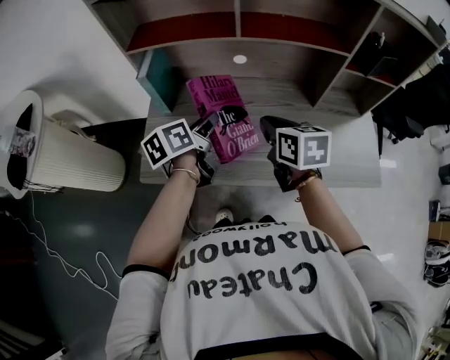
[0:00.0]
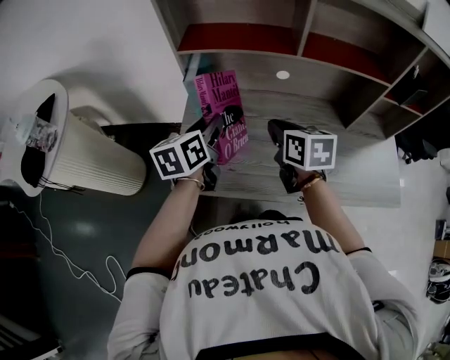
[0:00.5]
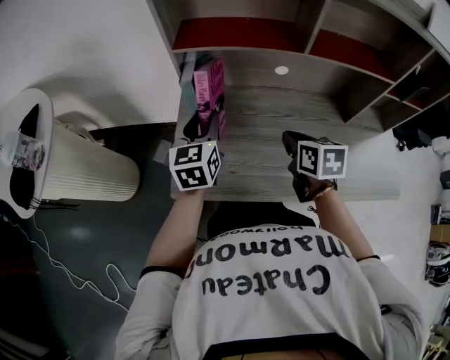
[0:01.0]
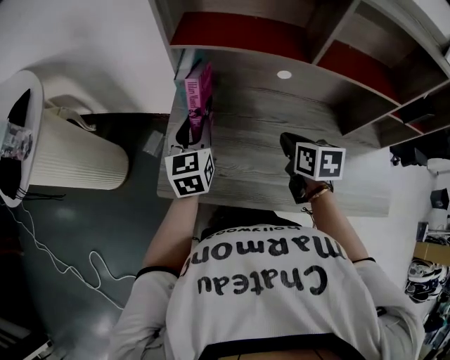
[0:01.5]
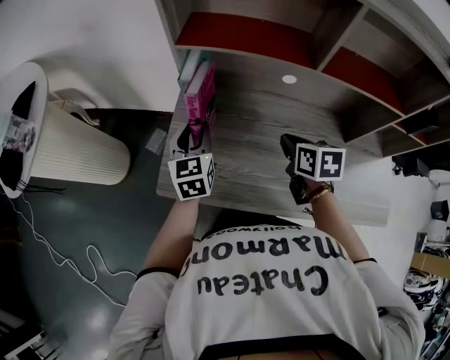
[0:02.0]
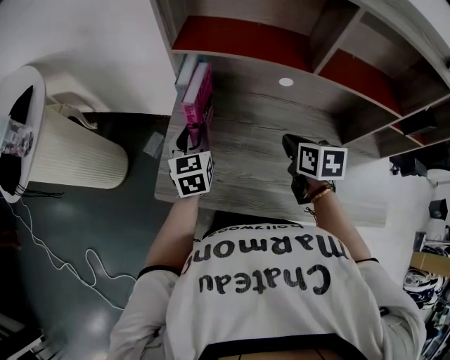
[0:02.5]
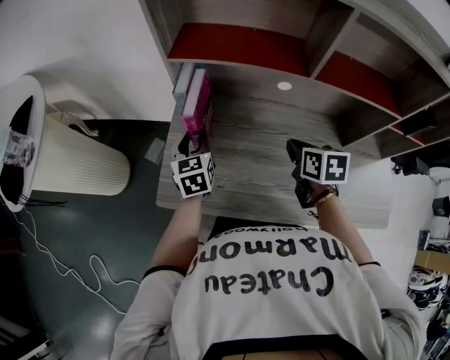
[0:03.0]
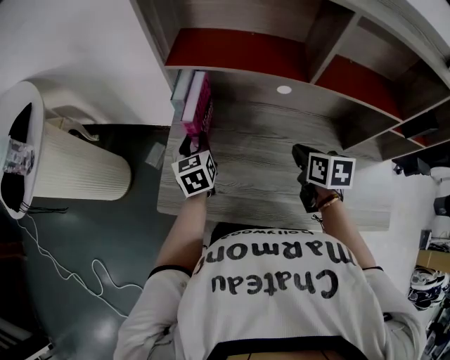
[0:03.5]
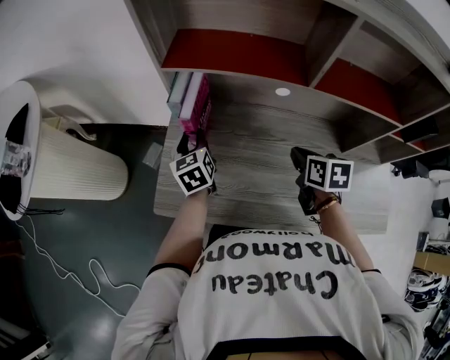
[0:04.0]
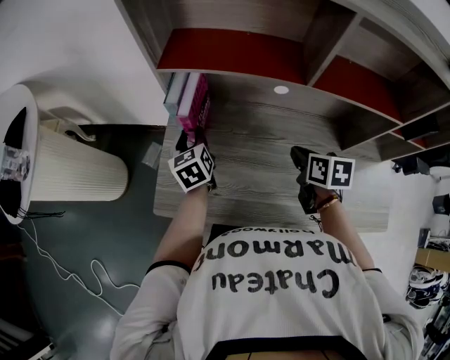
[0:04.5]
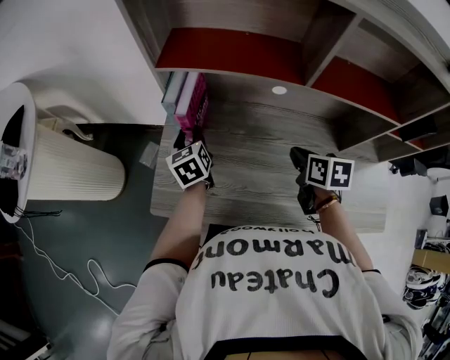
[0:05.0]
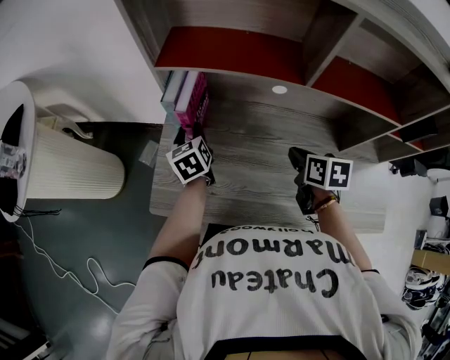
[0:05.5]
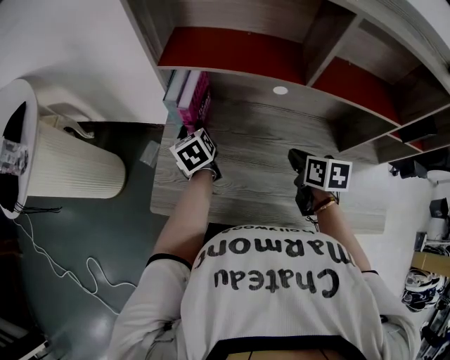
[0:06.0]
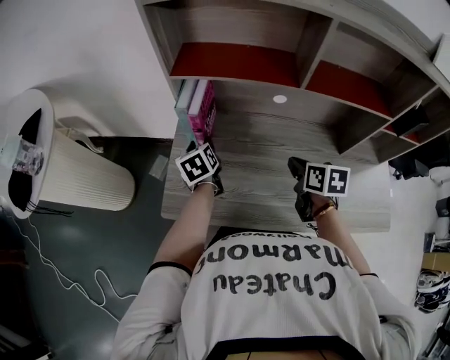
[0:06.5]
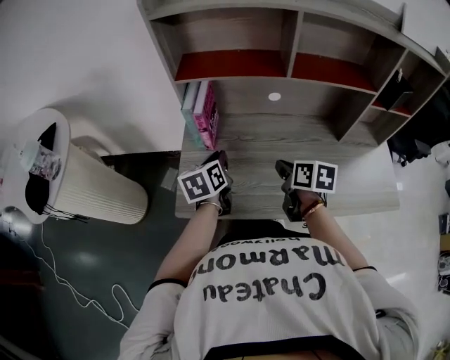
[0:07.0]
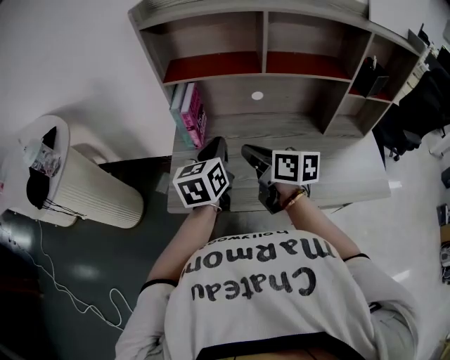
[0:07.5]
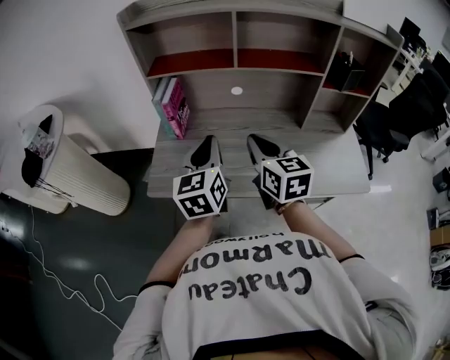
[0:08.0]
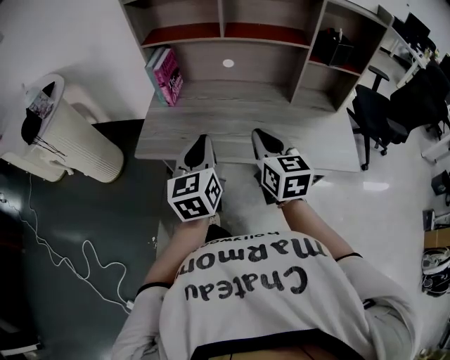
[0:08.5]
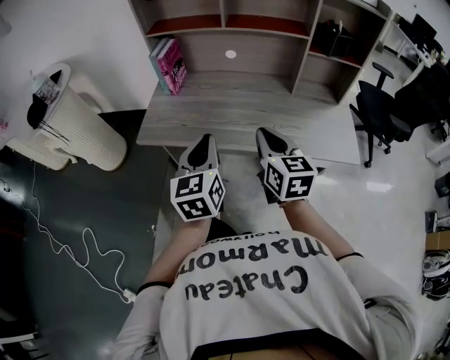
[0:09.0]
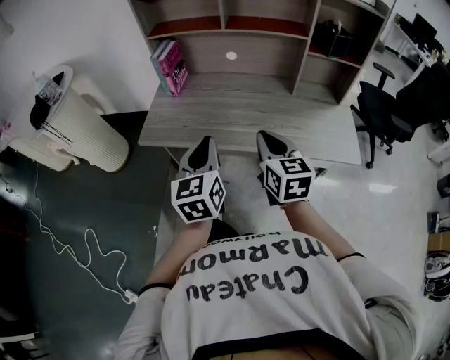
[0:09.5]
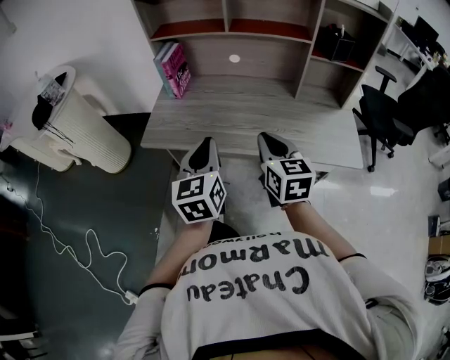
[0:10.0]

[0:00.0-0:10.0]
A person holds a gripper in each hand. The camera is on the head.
0:00.0 to 0:02.0: The left gripper goes approximately 15 cm to the left and forward, and rotates some 50 degrees, while the right gripper heads forward, downward and to the left, covering approximately 10 cm.
0:02.0 to 0:04.0: The right gripper is displaced to the right by roughly 5 cm. Meanwhile the left gripper heads forward and downward, covering some 10 cm.
0:04.0 to 0:06.0: There are only small adjustments of the grippers.
0:06.0 to 0:08.0: The left gripper is displaced backward, upward and to the right by approximately 35 cm, changes its angle by approximately 40 degrees, and closes its fingers. Meanwhile the right gripper is displaced upward and backward by roughly 25 cm, and tips its fingers upward by some 30 degrees.
0:08.0 to 0:10.0: The left gripper heads backward, covering roughly 15 cm, while the right gripper travels backward and to the right by roughly 15 cm.

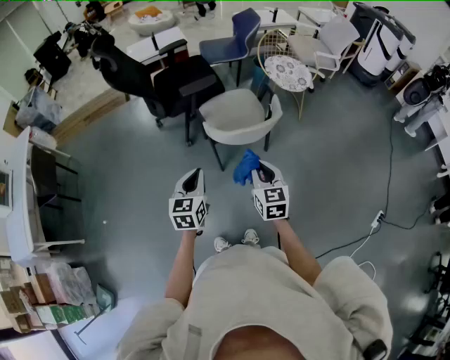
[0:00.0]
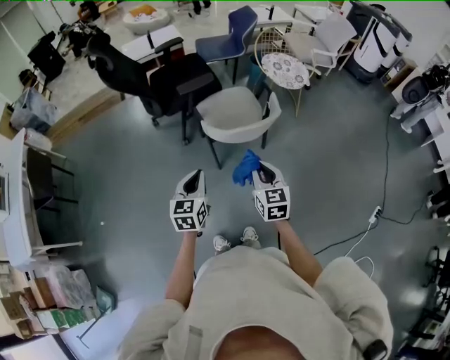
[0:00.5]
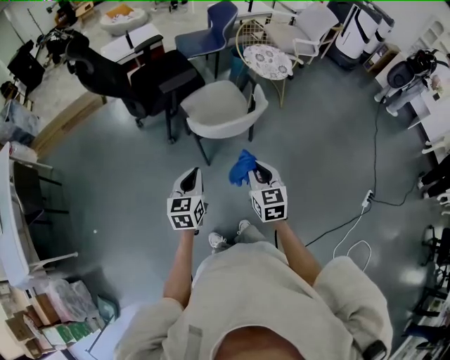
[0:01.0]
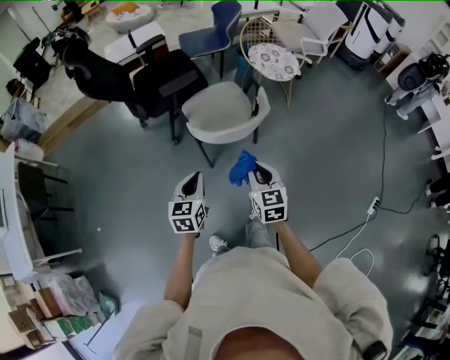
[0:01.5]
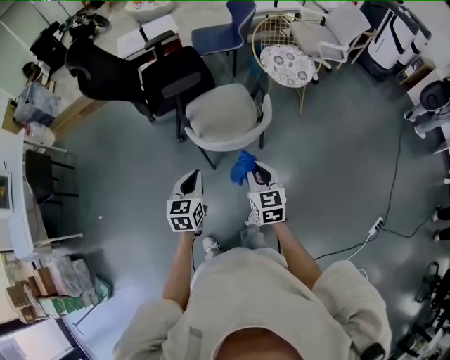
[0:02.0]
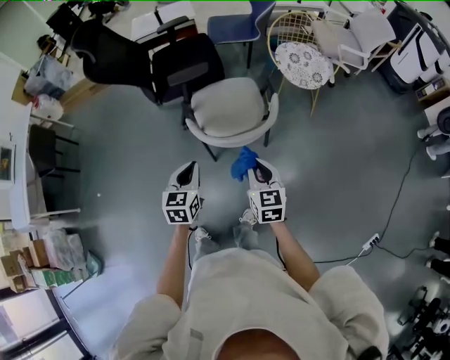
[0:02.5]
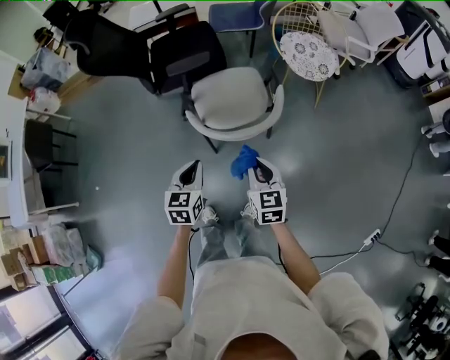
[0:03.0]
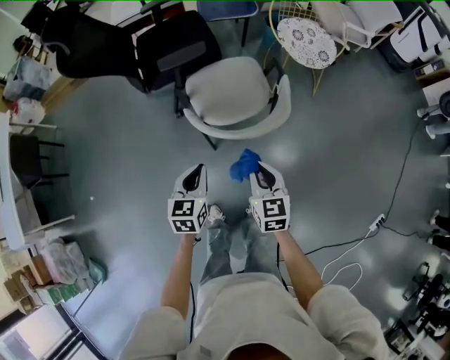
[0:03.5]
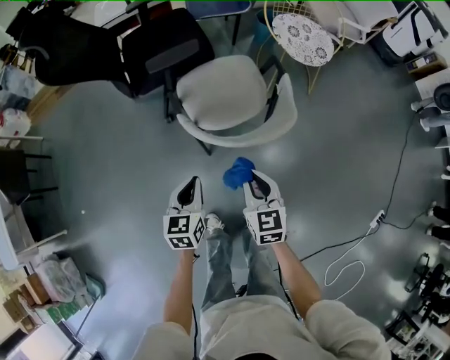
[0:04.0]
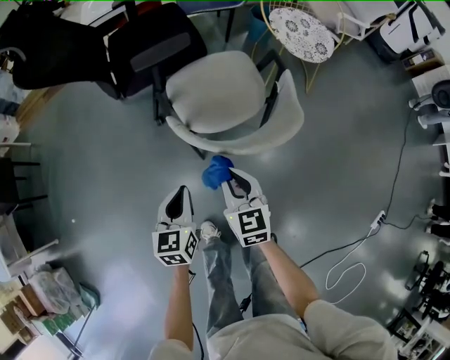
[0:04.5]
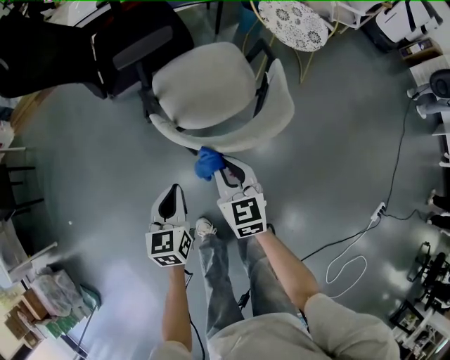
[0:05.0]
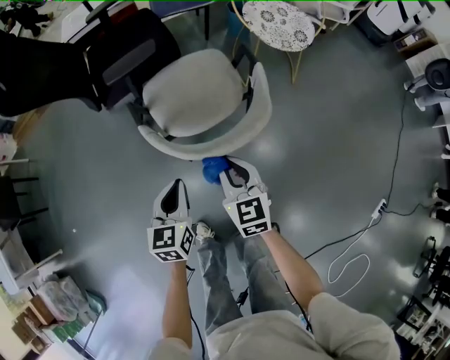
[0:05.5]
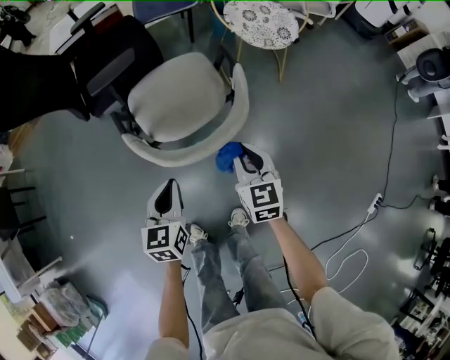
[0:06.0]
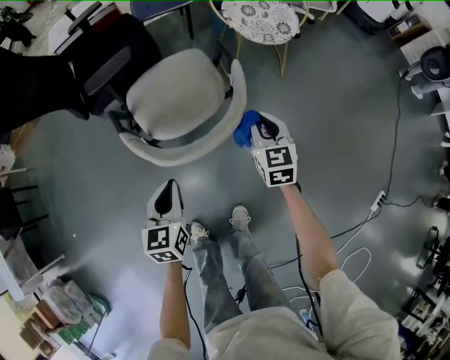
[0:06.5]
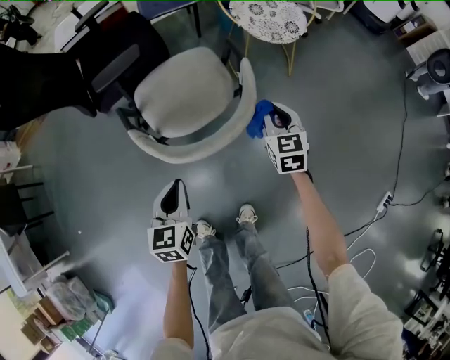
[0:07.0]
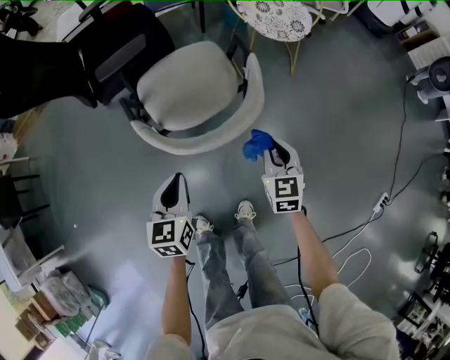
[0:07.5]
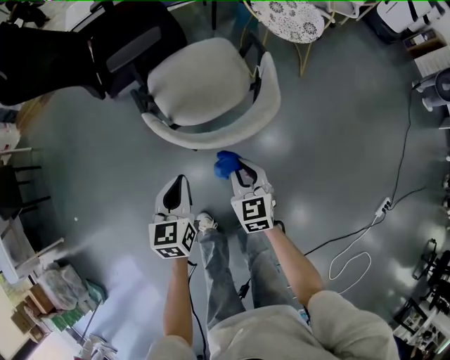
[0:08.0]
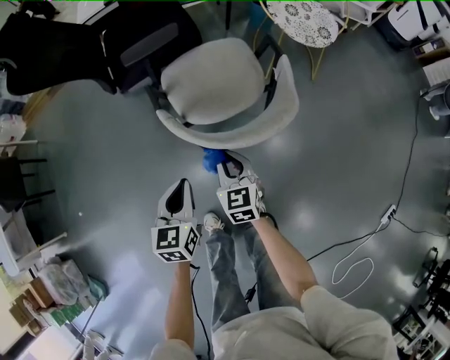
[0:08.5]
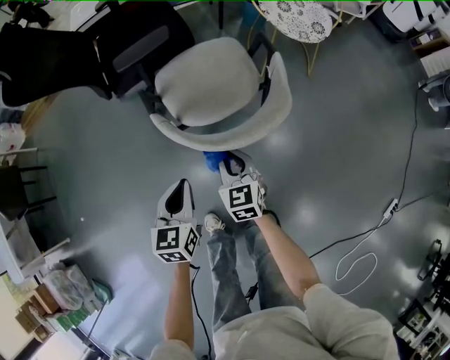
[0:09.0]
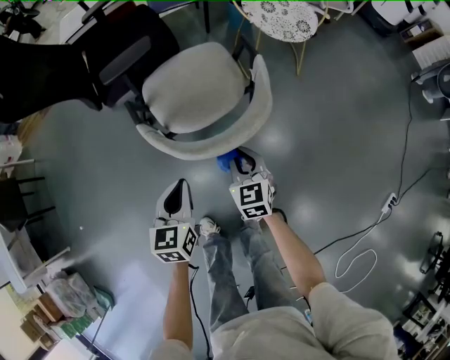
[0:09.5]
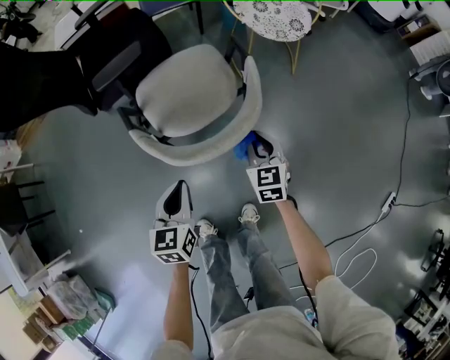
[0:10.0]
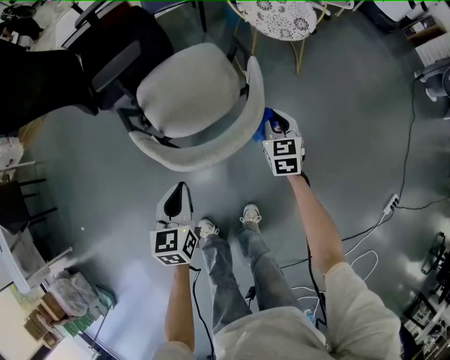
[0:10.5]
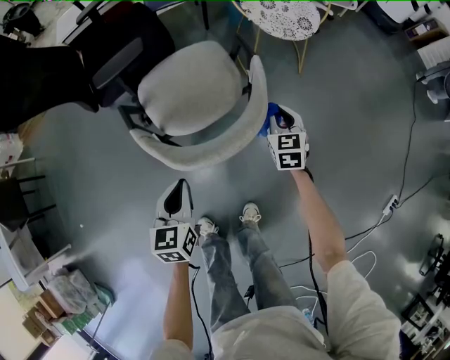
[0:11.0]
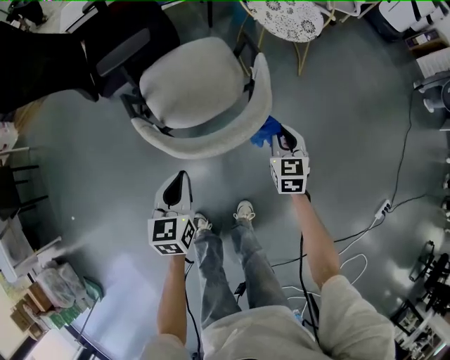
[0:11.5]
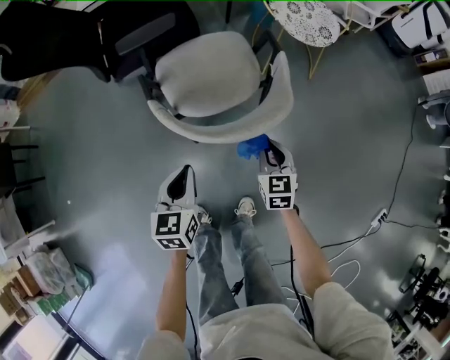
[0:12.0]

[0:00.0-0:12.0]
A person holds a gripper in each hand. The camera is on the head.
0:00.0 to 0:02.0: The right gripper moves forward and to the right, about 15 cm. The left gripper shifts roughly 15 cm to the right and forward.
0:02.0 to 0:04.0: The left gripper moves downward, about 15 cm. The right gripper is displaced downward and to the left by approximately 15 cm.
0:04.0 to 0:06.0: The left gripper heads to the right, covering approximately 10 cm. The right gripper is displaced to the right and forward by approximately 15 cm.
0:06.0 to 0:08.0: The right gripper travels to the left, backward and downward by some 15 cm, while the left gripper ends up some 5 cm from where it was.
0:08.0 to 0:10.0: The right gripper shifts approximately 15 cm to the right and forward; the left gripper moves about 5 cm.
0:10.0 to 0:12.0: The right gripper shifts roughly 5 cm backward.

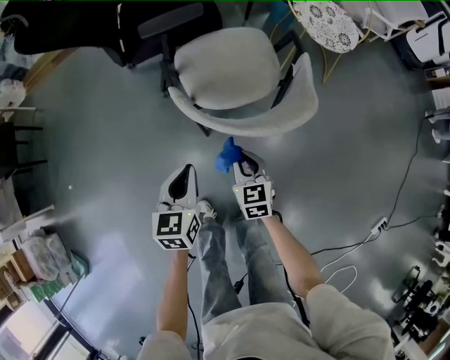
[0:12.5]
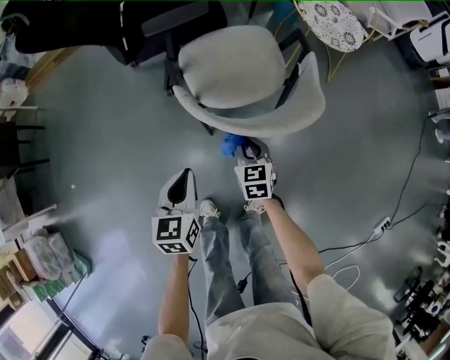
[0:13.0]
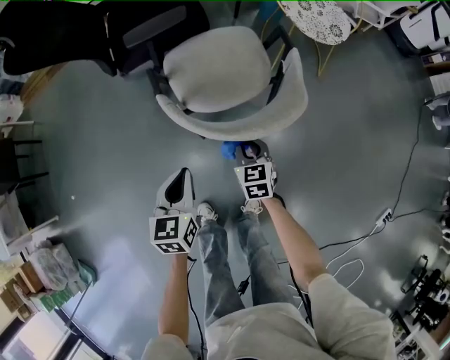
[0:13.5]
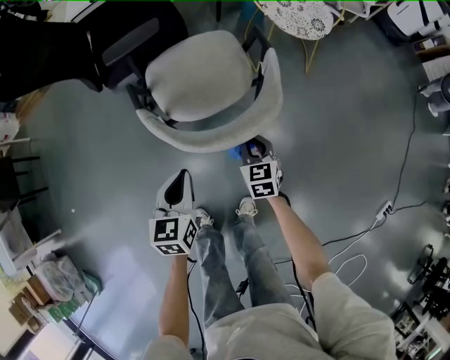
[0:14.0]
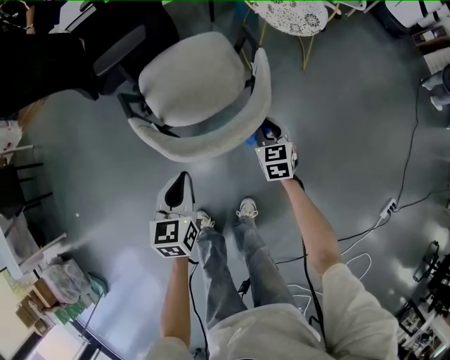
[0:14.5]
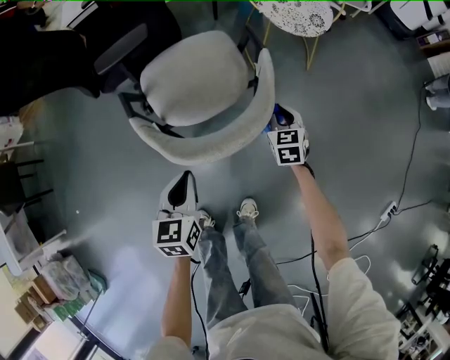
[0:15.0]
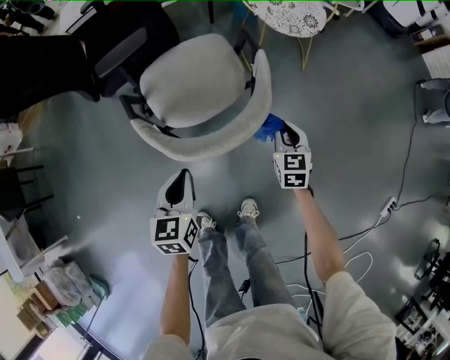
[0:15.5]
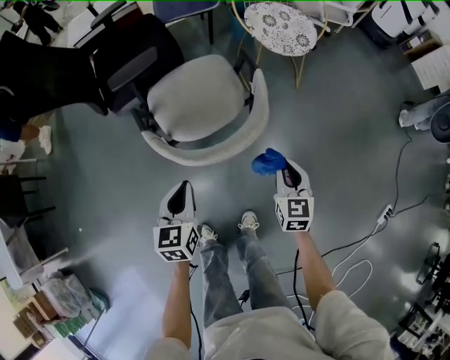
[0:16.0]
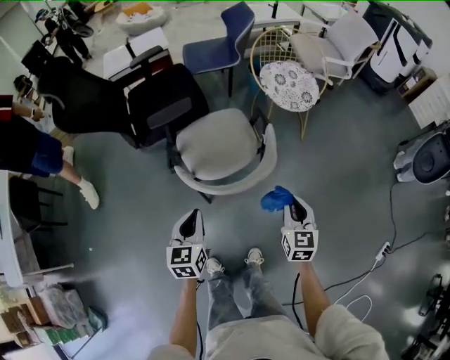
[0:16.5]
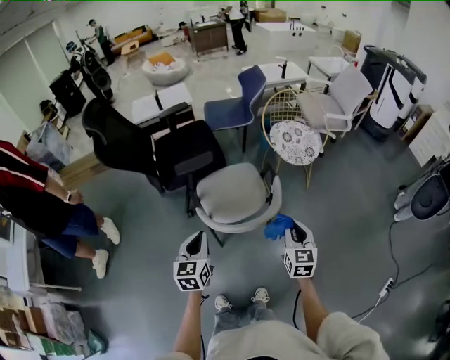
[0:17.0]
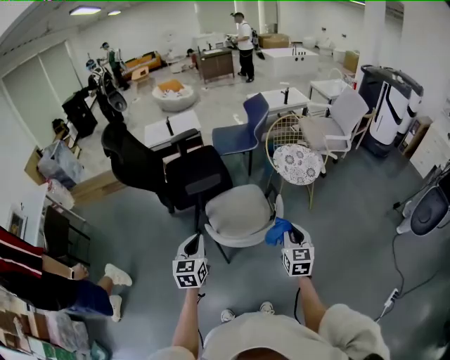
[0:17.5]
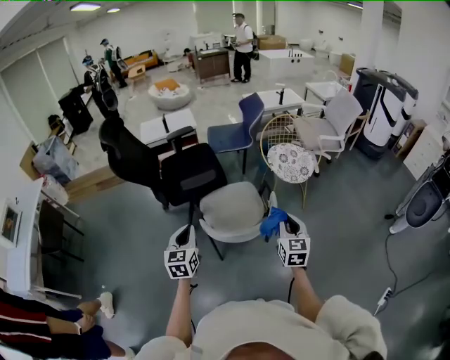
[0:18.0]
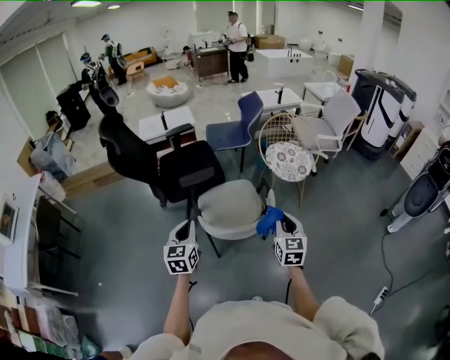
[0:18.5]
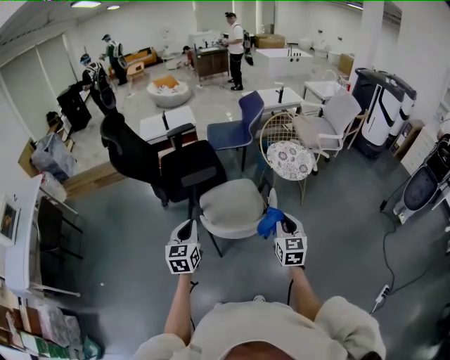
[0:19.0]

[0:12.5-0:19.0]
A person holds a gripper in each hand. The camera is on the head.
0:12.5 to 0:14.5: The right gripper is displaced to the right and forward by approximately 25 cm, while the left gripper moves to the right, some 10 cm.
0:14.5 to 0:17.0: The left gripper heads upward and to the left, covering about 25 cm, while the right gripper goes some 35 cm upward.
0:17.0 to 0:19.0: Both grippers travel together upward, roughly 10 cm.
